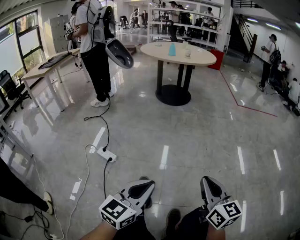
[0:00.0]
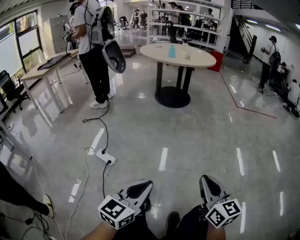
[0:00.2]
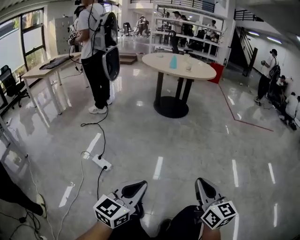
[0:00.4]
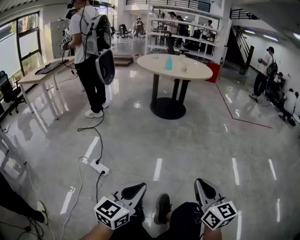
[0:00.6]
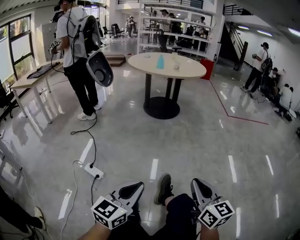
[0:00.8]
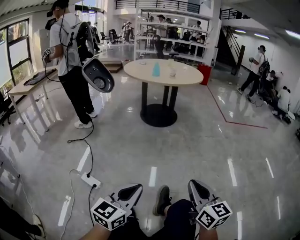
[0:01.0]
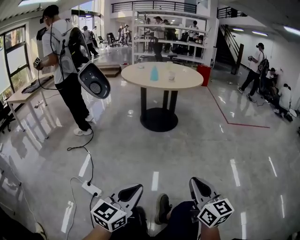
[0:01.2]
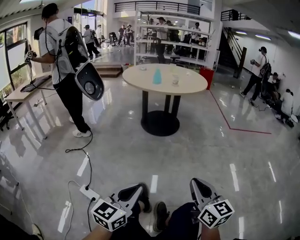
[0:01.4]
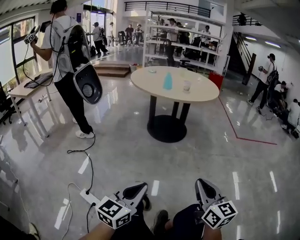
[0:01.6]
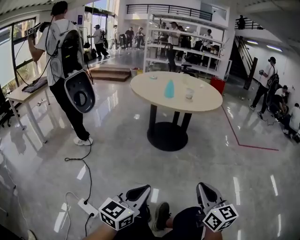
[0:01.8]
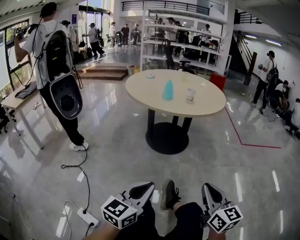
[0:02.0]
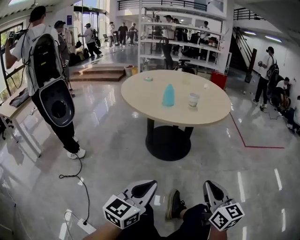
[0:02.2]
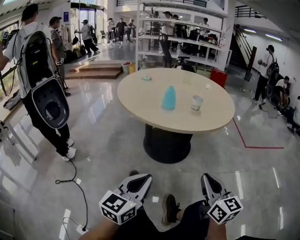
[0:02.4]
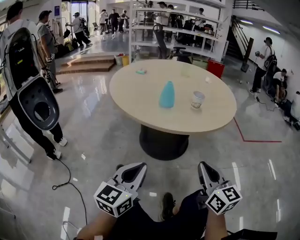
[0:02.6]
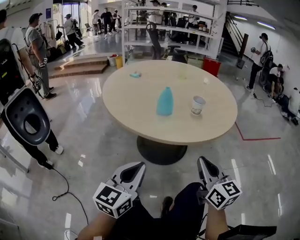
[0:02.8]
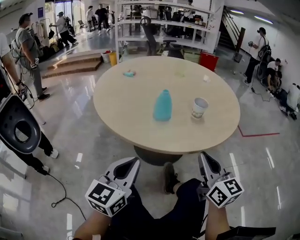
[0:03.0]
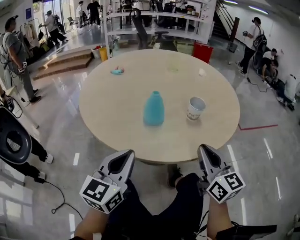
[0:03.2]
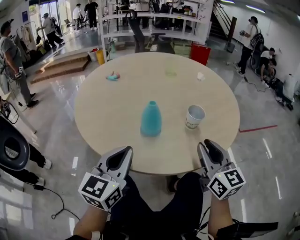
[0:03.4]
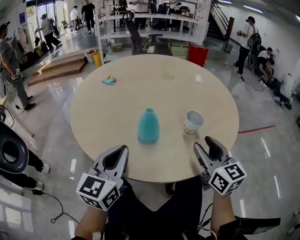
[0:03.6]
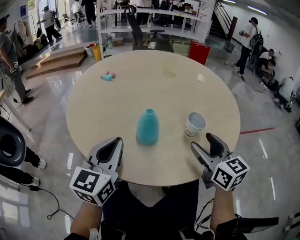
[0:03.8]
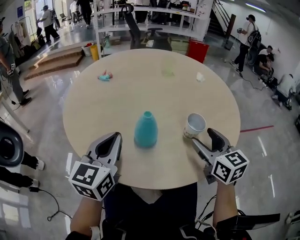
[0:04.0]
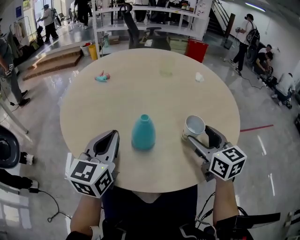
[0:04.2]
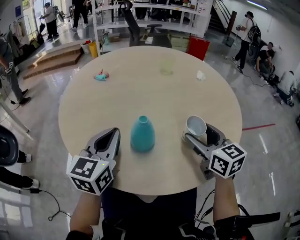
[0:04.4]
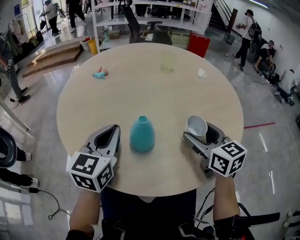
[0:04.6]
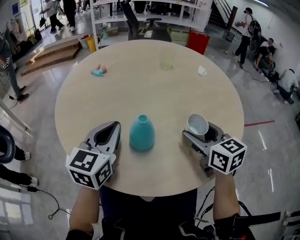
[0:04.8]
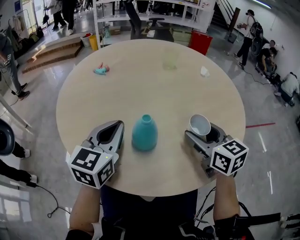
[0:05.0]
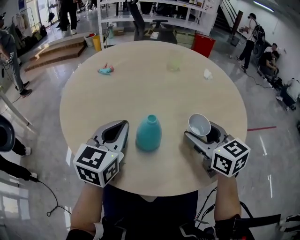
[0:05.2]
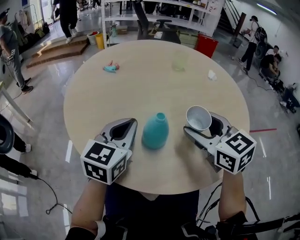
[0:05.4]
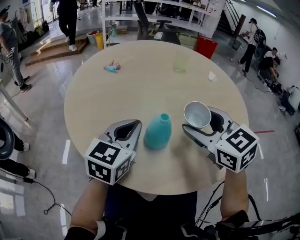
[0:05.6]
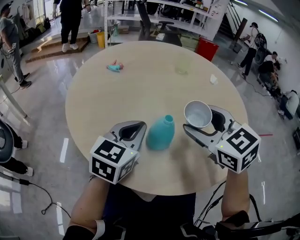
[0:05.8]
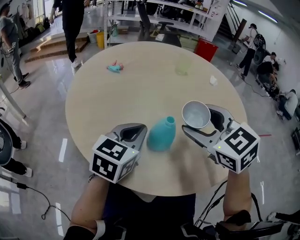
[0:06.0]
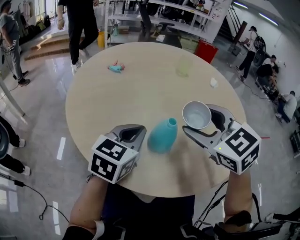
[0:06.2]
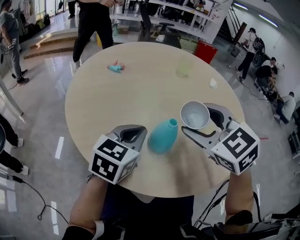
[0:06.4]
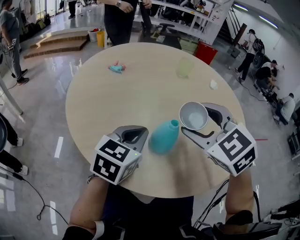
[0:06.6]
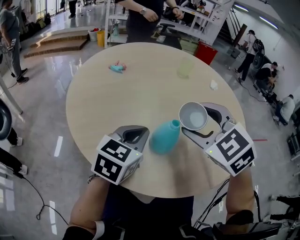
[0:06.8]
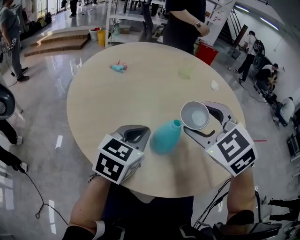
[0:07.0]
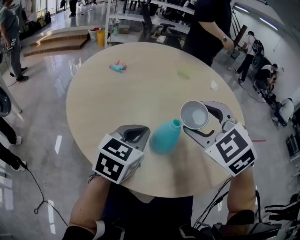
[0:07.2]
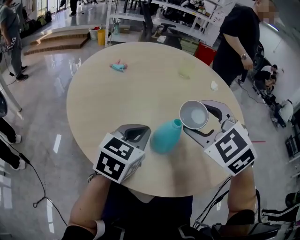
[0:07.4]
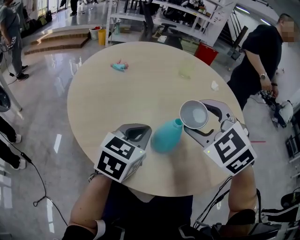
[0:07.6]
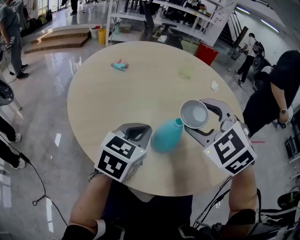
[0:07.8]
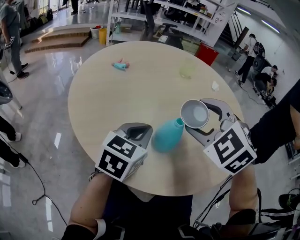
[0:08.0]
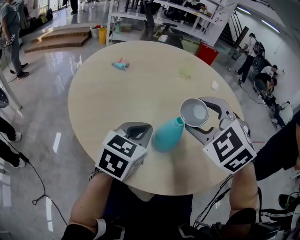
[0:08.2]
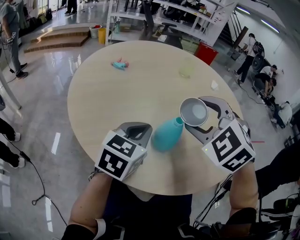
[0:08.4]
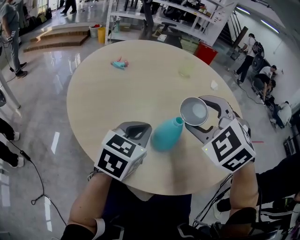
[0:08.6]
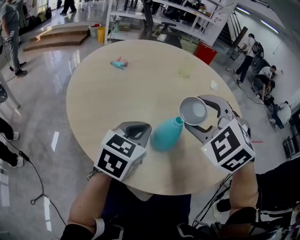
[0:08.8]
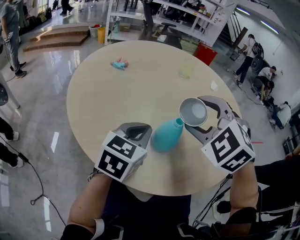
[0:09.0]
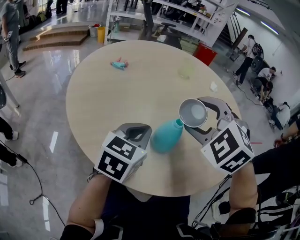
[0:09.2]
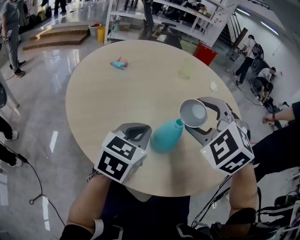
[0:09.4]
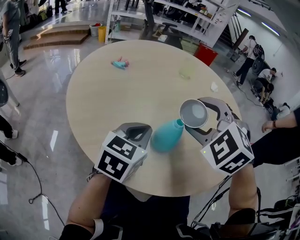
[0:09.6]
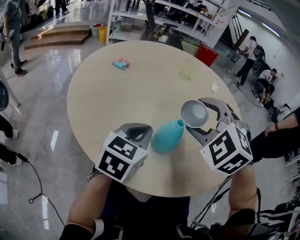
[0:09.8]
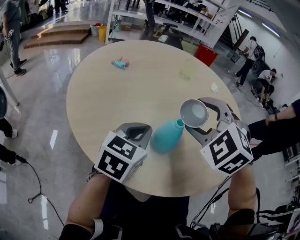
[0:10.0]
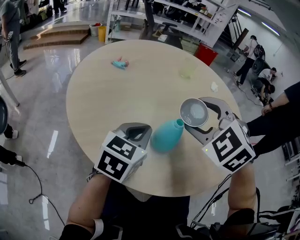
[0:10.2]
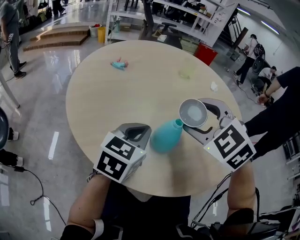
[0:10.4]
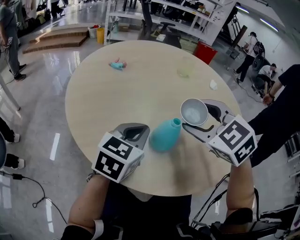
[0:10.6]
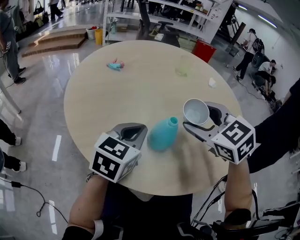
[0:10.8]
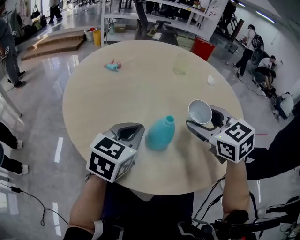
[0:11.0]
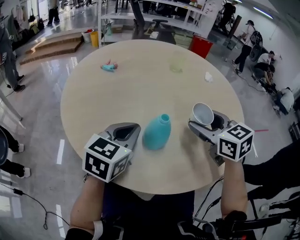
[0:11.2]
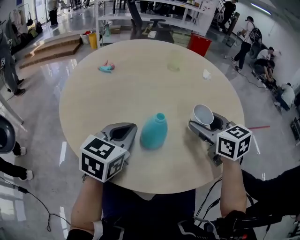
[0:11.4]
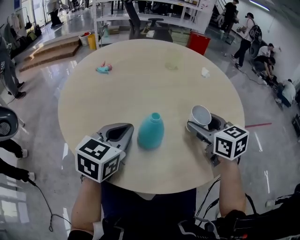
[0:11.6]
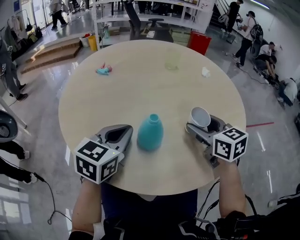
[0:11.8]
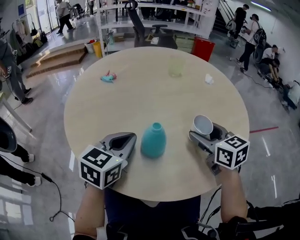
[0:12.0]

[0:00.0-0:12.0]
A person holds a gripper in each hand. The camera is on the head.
0:00.0 to 0:01.6: The grippers both shift forward by about 35 cm.
0:01.6 to 0:03.0: The pair of grippers is taken forward, roughly 60 cm.
0:03.0 to 0:04.4: Both grippers travel together forward, roughly 25 cm. The right gripper opens.
0:04.4 to 0:06.0: The right gripper goes roughly 15 cm to the left and upward, and turns by approximately 30 degrees.
0:06.0 to 0:07.6: The right gripper turns by about 30 degrees.
0:07.6 to 0:10.4: The grippers move only a little.
0:10.4 to 0:12.0: The right gripper is displaced to the right and downward by some 15 cm, and twists approximately 50 degrees clockwise, seen from behind.

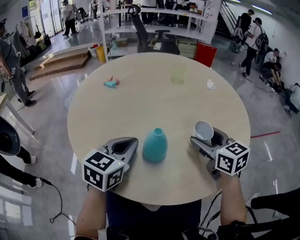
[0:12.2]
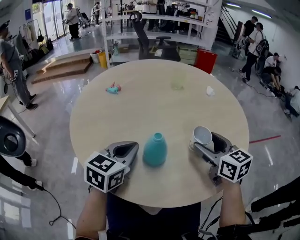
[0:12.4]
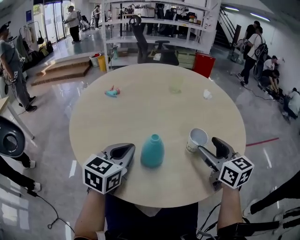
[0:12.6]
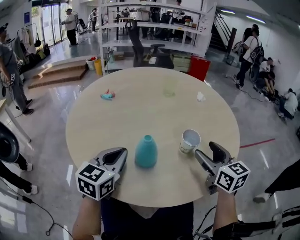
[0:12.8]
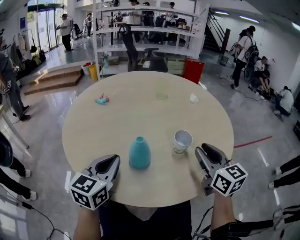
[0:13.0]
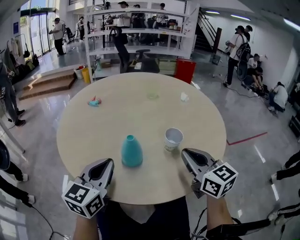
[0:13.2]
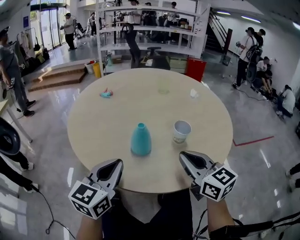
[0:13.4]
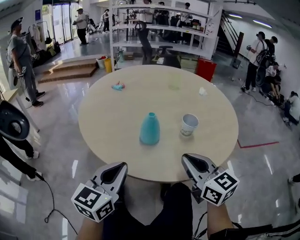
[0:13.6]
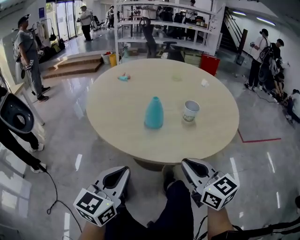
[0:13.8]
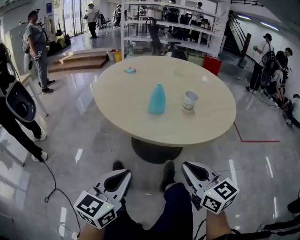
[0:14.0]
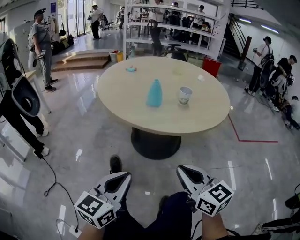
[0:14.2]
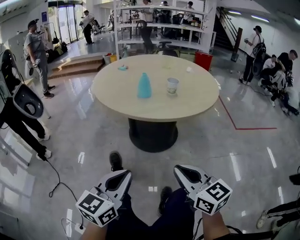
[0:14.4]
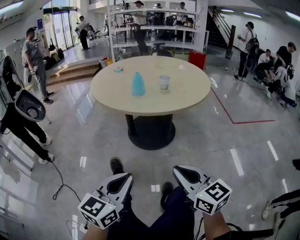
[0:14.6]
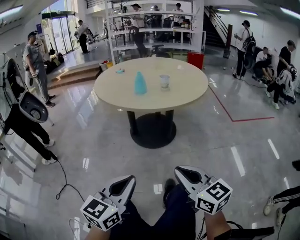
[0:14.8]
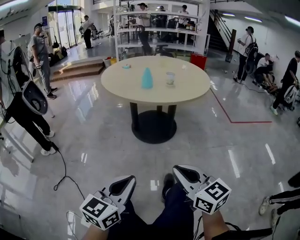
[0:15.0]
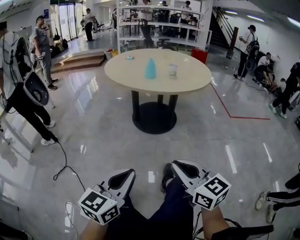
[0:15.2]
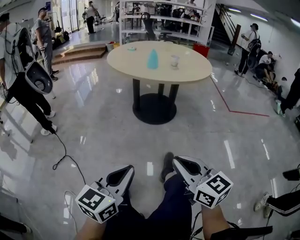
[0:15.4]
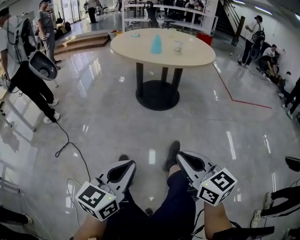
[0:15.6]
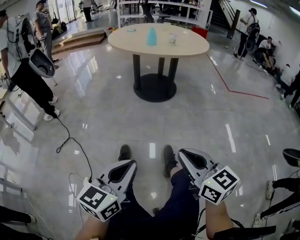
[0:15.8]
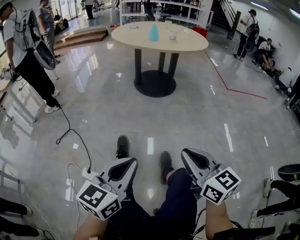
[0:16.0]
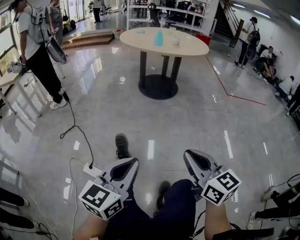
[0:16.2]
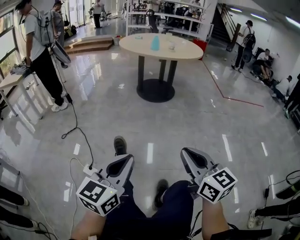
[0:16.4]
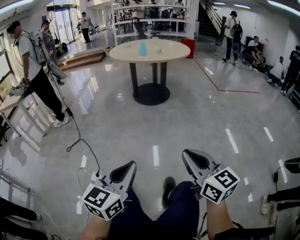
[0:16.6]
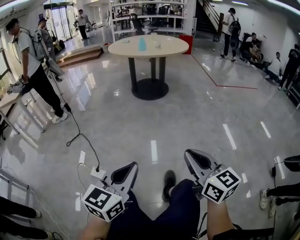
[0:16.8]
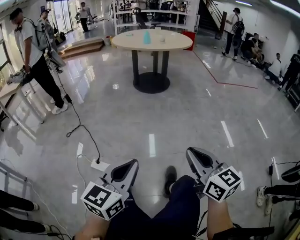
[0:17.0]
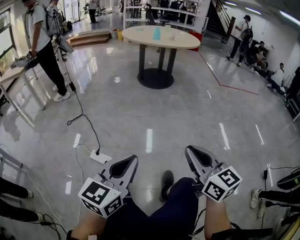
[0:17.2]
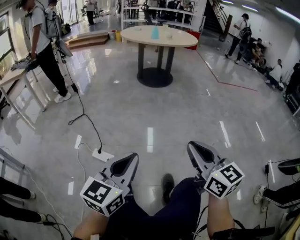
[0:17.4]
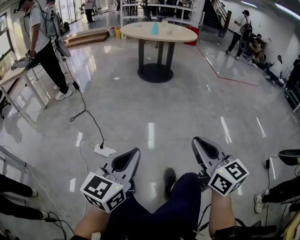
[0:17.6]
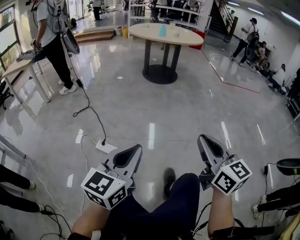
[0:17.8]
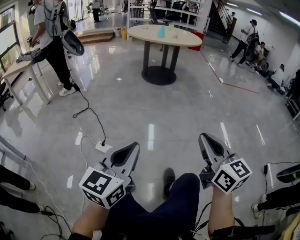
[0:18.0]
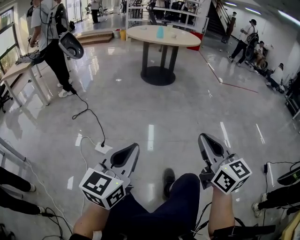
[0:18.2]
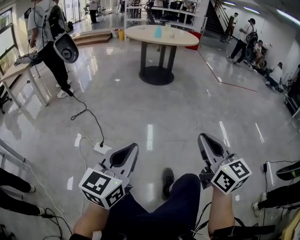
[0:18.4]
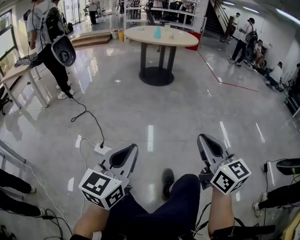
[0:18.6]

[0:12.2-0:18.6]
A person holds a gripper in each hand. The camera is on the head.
0:12.2 to 0:13.8: The grippers both shift backward by roughly 25 cm. The right gripper closes.
0:13.8 to 0:15.4: Both grippers are carried backward, about 50 cm.
0:15.4 to 0:17.0: The two grippers travel together, backward, approximately 40 cm.
0:17.0 to 0:18.6: Both grippers travel together backward, about 10 cm.

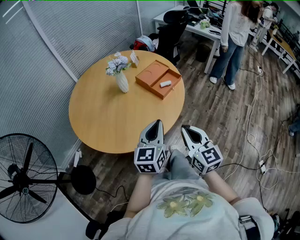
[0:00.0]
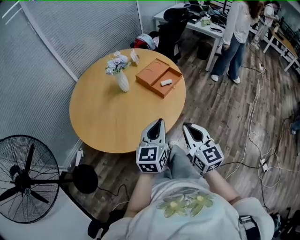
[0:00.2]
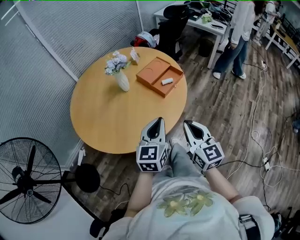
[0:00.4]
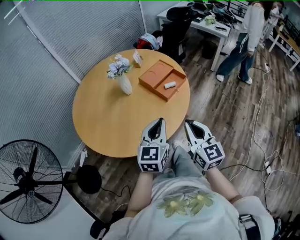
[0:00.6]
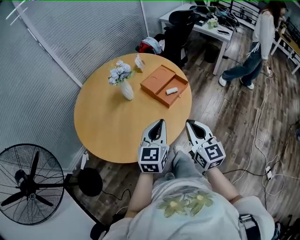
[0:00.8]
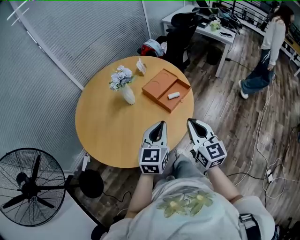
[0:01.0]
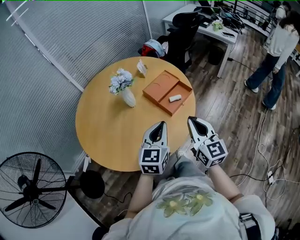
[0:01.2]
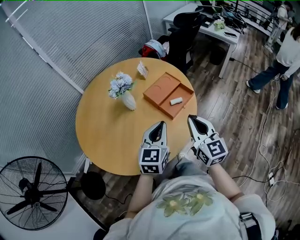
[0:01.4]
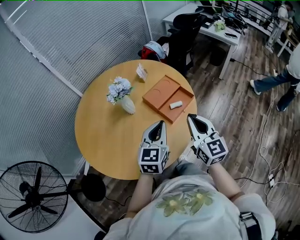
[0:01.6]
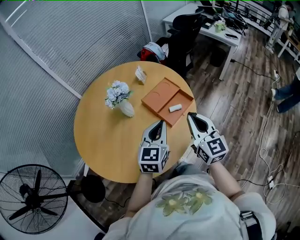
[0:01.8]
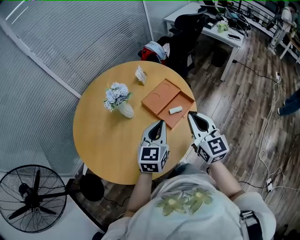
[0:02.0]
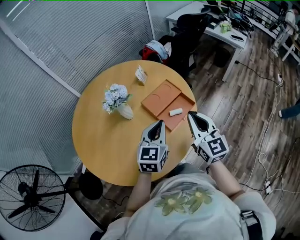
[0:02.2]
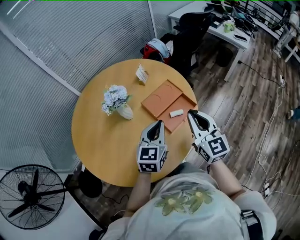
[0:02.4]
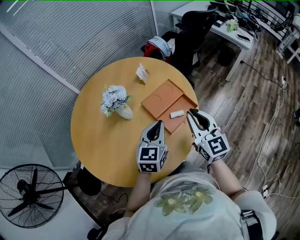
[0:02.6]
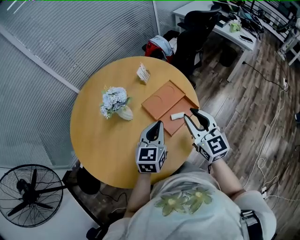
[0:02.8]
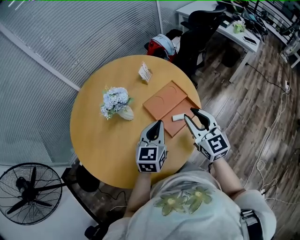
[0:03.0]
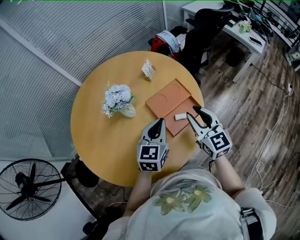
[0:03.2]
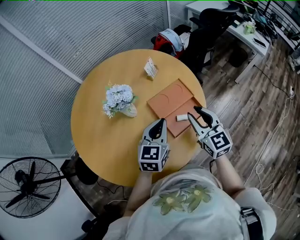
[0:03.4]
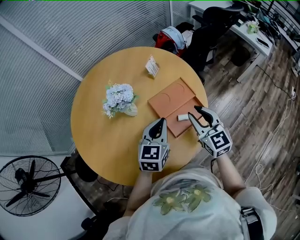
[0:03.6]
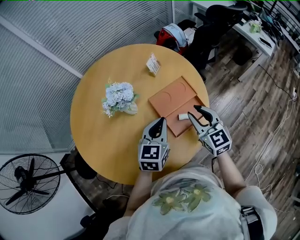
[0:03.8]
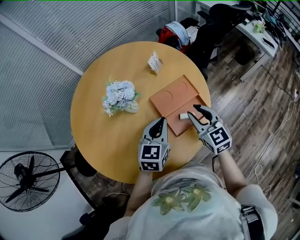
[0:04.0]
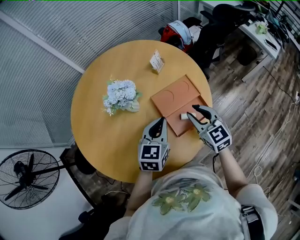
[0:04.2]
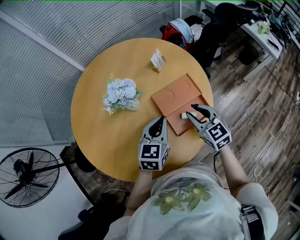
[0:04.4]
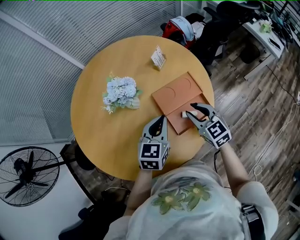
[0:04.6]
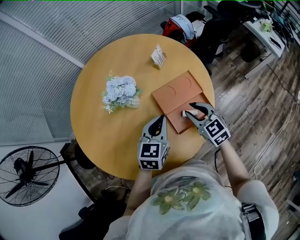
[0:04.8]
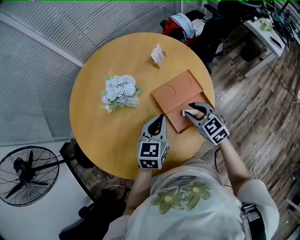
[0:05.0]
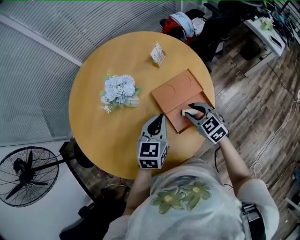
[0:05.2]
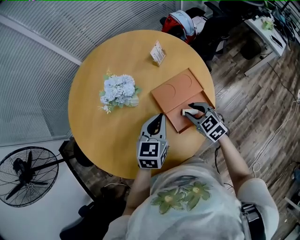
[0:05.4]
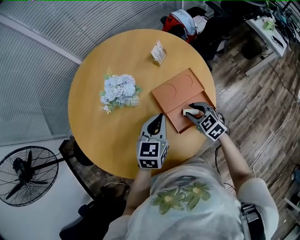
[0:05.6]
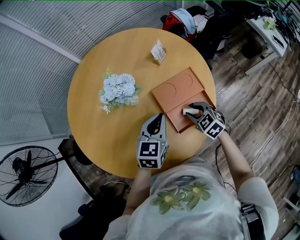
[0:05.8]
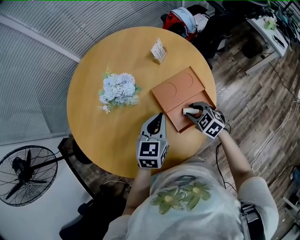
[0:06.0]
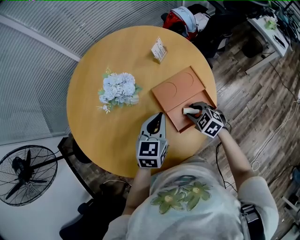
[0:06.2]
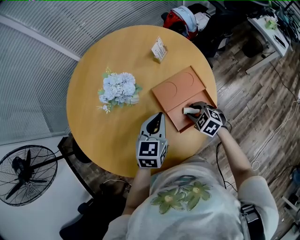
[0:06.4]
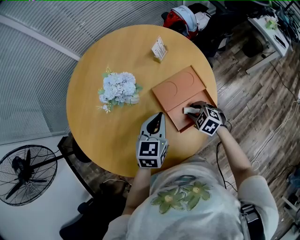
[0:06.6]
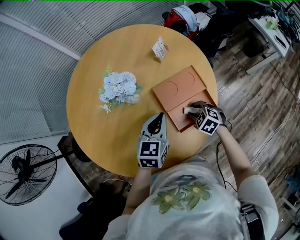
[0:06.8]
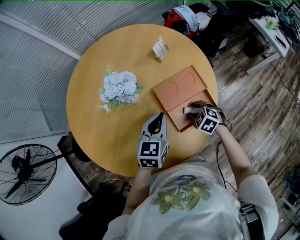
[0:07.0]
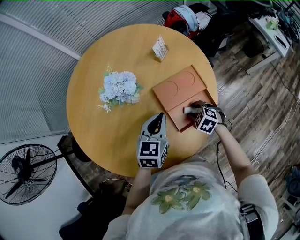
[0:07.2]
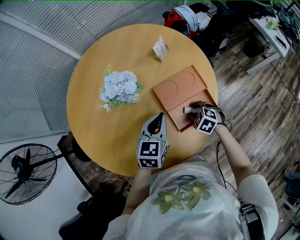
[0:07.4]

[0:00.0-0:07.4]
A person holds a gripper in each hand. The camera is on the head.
0:00.0 to 0:01.4: The two grippers go roughly 20 cm forward.
0:01.4 to 0:03.0: Both grippers move forward, roughly 20 cm. The right gripper opens up.
0:03.0 to 0:04.4: The right gripper heads downward and forward, covering roughly 15 cm, and changes its angle by roughly 20 degrees. Meanwhile the left gripper shifts by about 5 cm.
0:04.4 to 0:06.0: The right gripper is displaced downward by about 15 cm, and swivels approximately 30 degrees.
0:06.0 to 0:07.4: The right gripper moves downward, approximately 5 cm.
